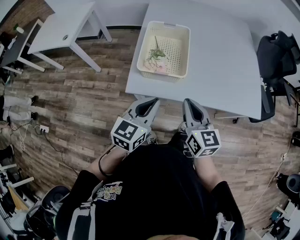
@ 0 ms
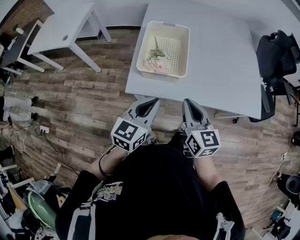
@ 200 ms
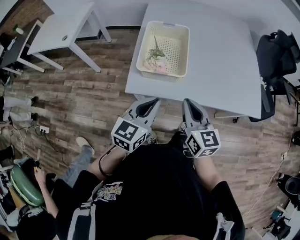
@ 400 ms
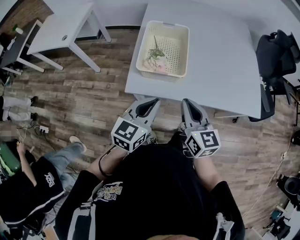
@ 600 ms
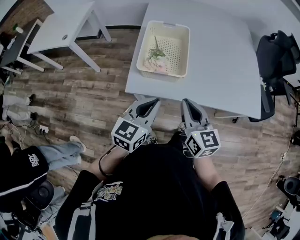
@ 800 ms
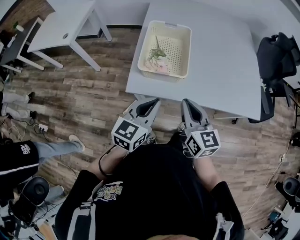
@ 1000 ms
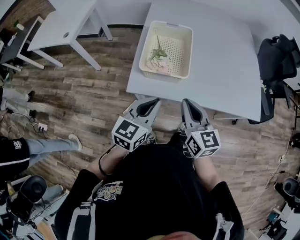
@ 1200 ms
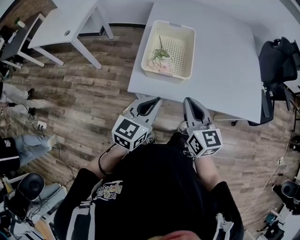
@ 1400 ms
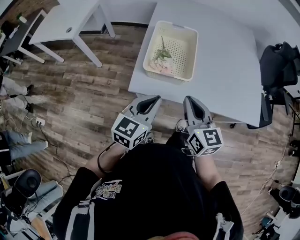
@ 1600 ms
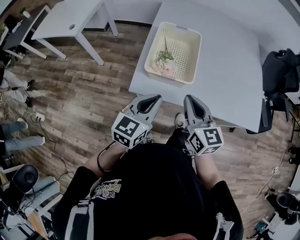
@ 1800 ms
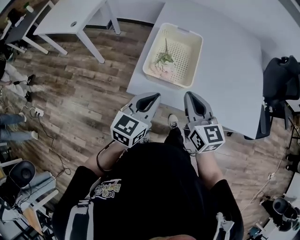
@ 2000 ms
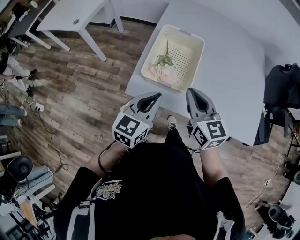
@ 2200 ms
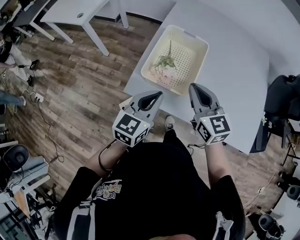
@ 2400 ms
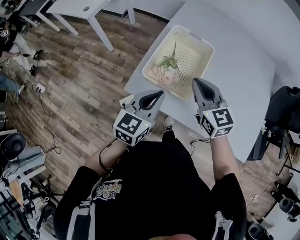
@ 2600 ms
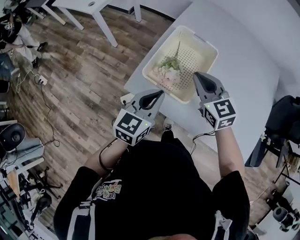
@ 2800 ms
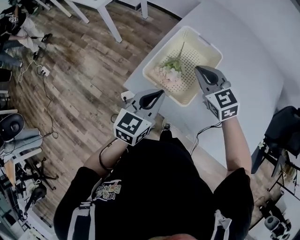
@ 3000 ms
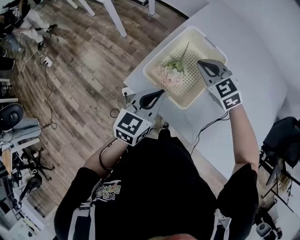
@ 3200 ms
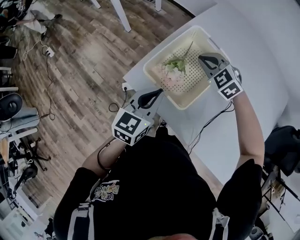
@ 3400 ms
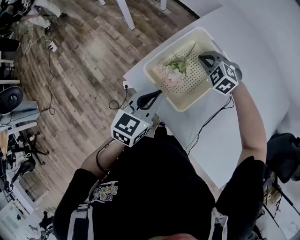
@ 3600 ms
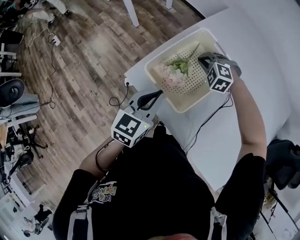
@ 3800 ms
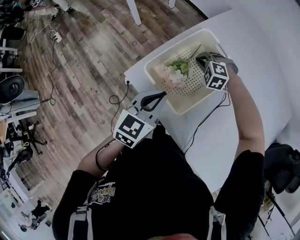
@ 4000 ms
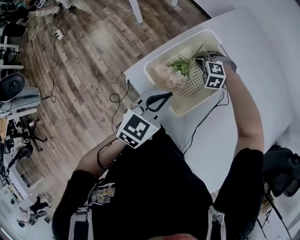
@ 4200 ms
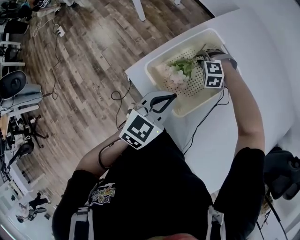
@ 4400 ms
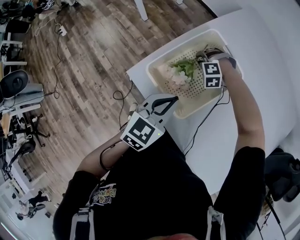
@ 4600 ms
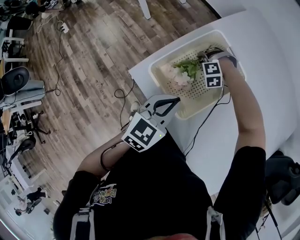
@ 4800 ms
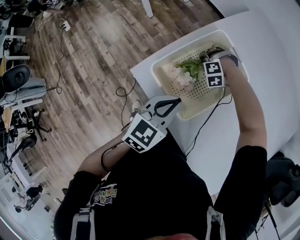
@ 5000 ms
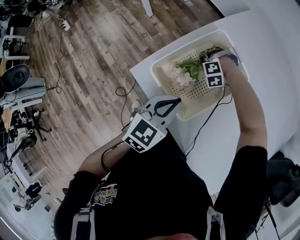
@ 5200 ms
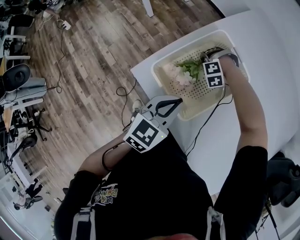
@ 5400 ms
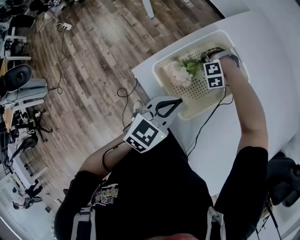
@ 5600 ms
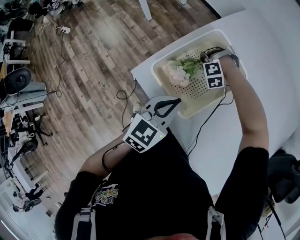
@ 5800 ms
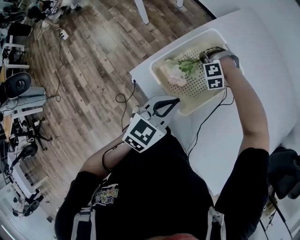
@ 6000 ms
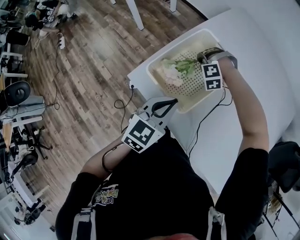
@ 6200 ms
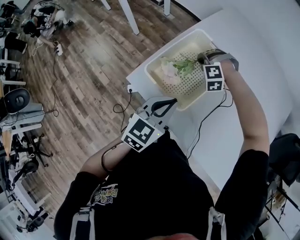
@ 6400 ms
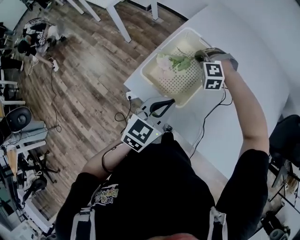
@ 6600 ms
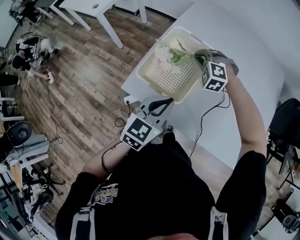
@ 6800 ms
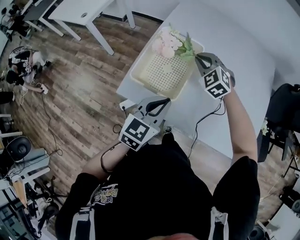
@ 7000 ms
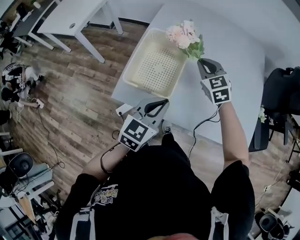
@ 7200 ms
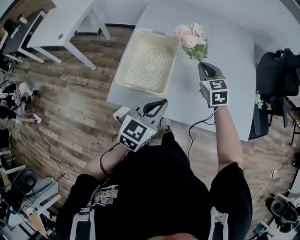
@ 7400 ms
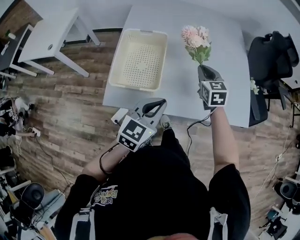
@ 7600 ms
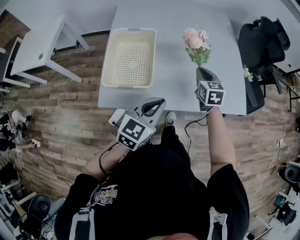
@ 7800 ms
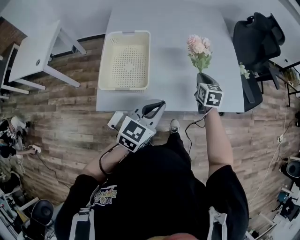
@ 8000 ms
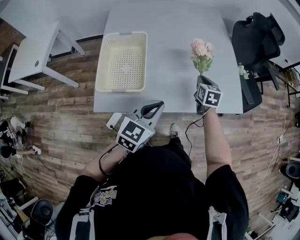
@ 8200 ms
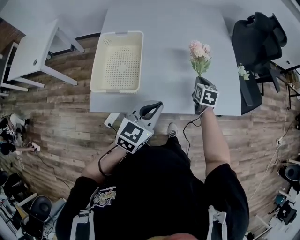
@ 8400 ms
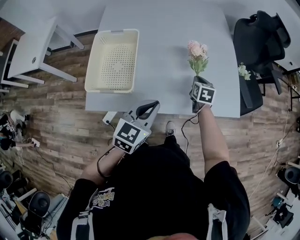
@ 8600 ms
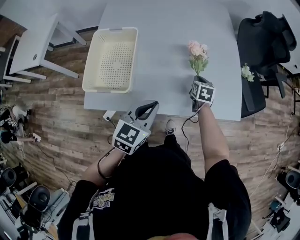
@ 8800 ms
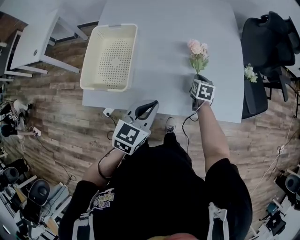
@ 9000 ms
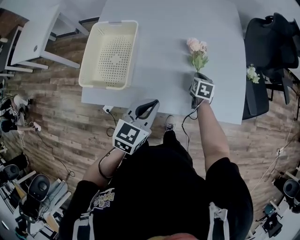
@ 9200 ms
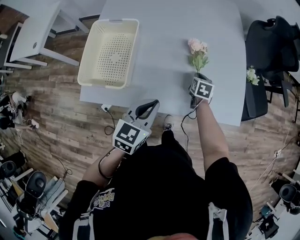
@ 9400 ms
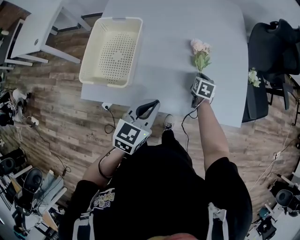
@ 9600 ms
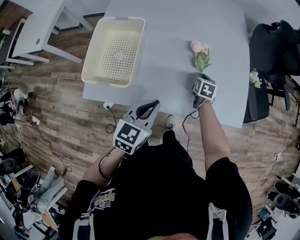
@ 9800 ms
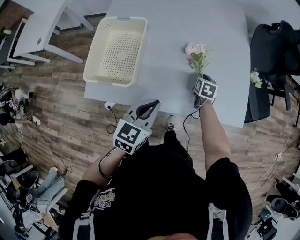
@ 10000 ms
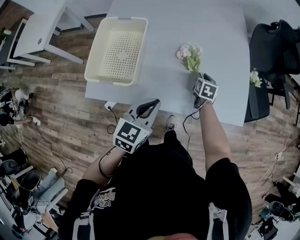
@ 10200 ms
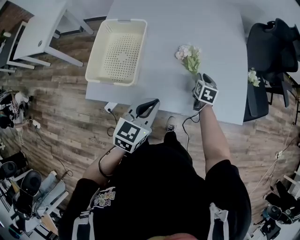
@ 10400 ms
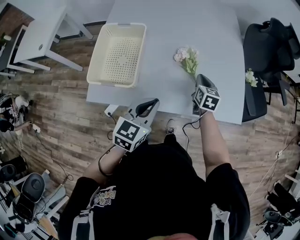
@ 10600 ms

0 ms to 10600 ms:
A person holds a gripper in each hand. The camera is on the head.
0 ms to 1600 ms: The grippers move only a little.
1600 ms to 3000 ms: The left gripper shifts by approximately 15 cm, and rotates approximately 20 degrees, while the right gripper shifts by about 25 cm, and swivels about 50 degrees.
3000 ms to 4600 ms: The left gripper heads to the right, covering roughly 5 cm. Meanwhile the right gripper is displaced downward and forward by about 30 cm, and twists roughly 80 degrees counterclockwise, seen from behind.
4600 ms to 6000 ms: There are only small adjustments of the grippers.
6000 ms to 7600 ms: The left gripper shifts by about 15 cm, and swivels about 40 degrees, while the right gripper moves approximately 40 cm, and rolls clockwise, seen from behind, by some 120 degrees.
7600 ms to 9000 ms: The right gripper heads downward and to the right, covering approximately 25 cm, and swivels about 30 degrees. The left gripper travels to the right and forward by approximately 10 cm.
9000 ms to 10600 ms: The right gripper travels upward by roughly 5 cm.

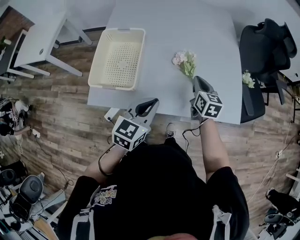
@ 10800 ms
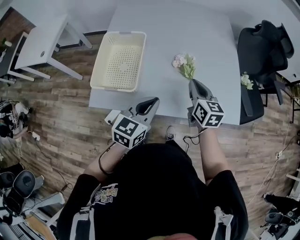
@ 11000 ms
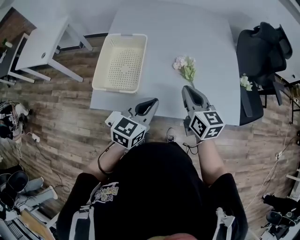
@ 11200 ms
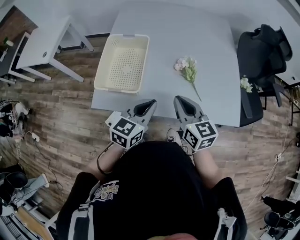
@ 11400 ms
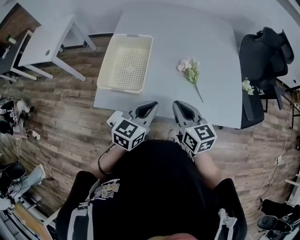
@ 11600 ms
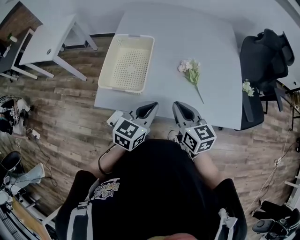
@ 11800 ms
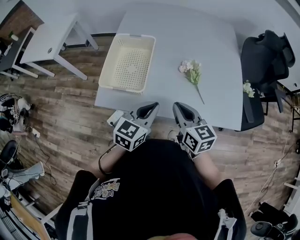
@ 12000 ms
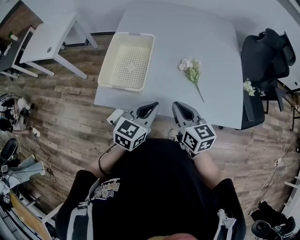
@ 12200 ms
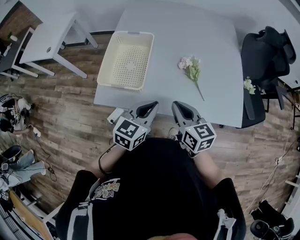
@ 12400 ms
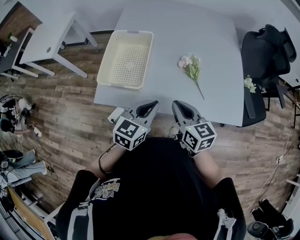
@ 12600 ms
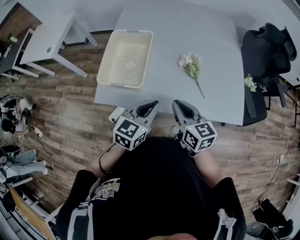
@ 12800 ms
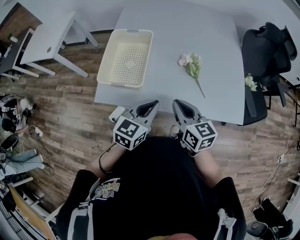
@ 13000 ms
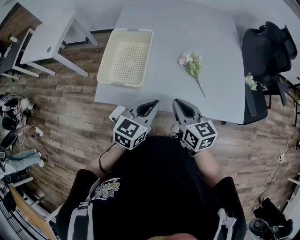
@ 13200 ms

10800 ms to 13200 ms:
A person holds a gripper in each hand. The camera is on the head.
10800 ms to 12000 ms: The right gripper is displaced backward, to the left and upward by approximately 20 cm, and swivels approximately 20 degrees.
12000 ms to 13200 ms: The grippers make only small movements.

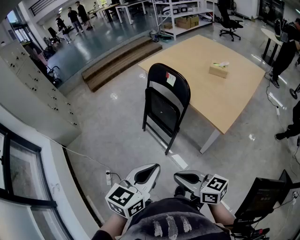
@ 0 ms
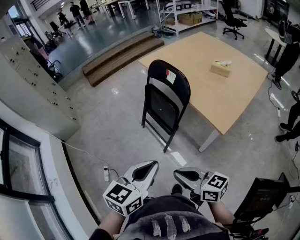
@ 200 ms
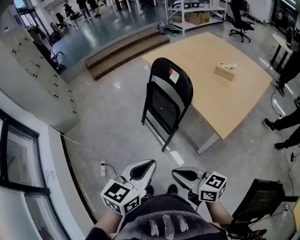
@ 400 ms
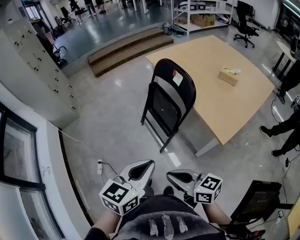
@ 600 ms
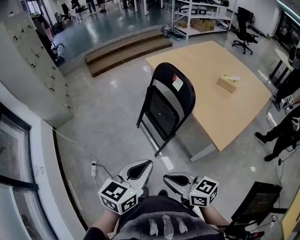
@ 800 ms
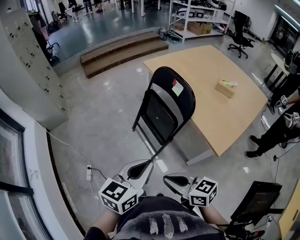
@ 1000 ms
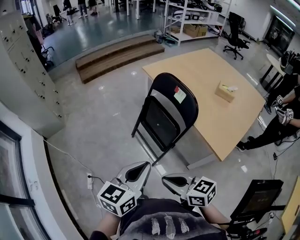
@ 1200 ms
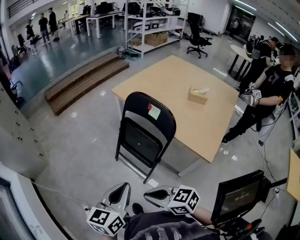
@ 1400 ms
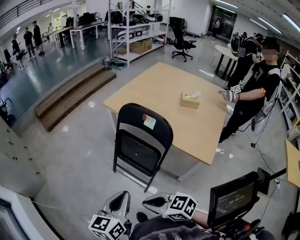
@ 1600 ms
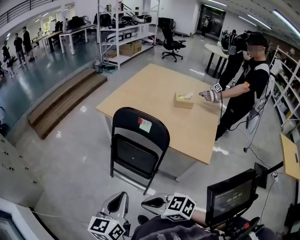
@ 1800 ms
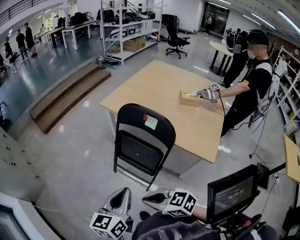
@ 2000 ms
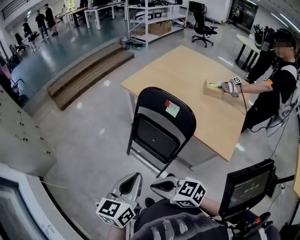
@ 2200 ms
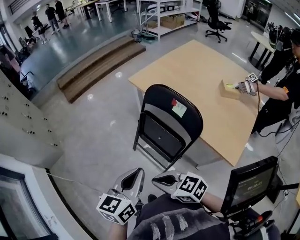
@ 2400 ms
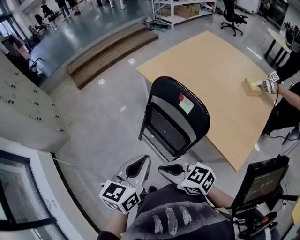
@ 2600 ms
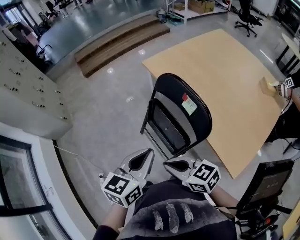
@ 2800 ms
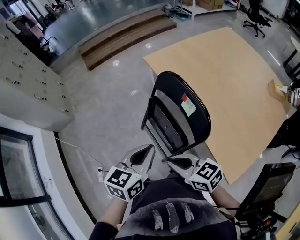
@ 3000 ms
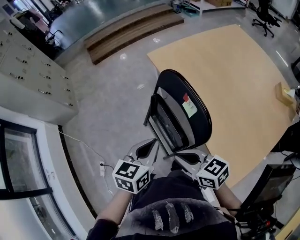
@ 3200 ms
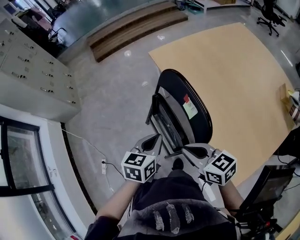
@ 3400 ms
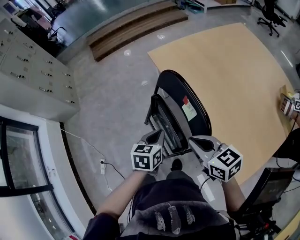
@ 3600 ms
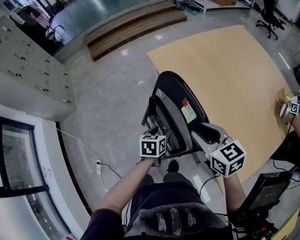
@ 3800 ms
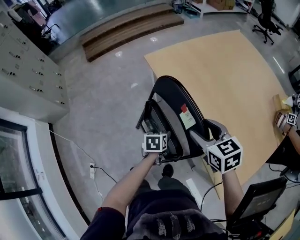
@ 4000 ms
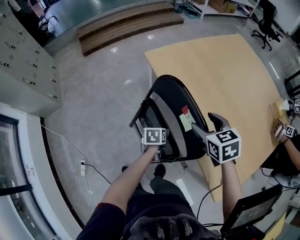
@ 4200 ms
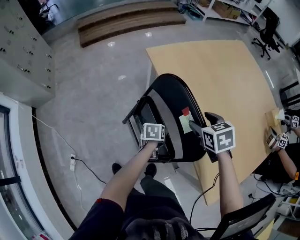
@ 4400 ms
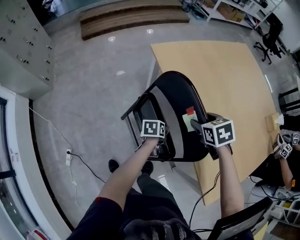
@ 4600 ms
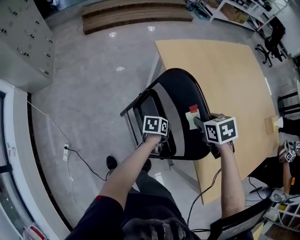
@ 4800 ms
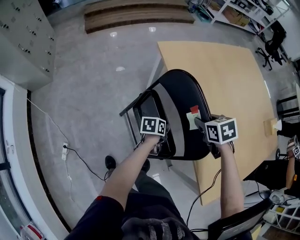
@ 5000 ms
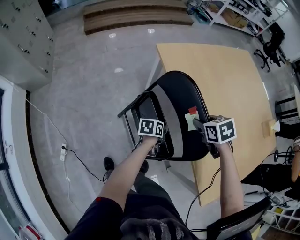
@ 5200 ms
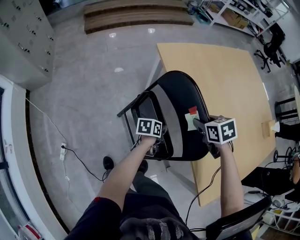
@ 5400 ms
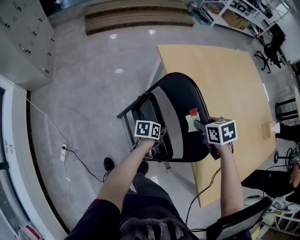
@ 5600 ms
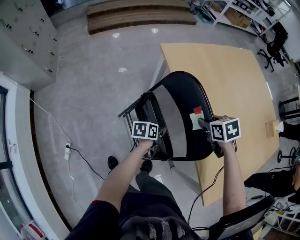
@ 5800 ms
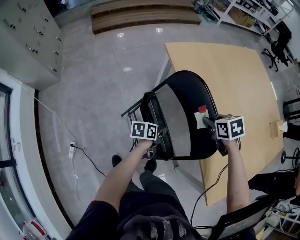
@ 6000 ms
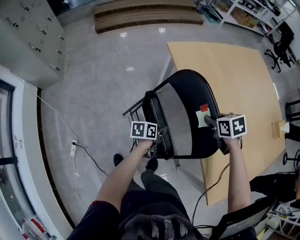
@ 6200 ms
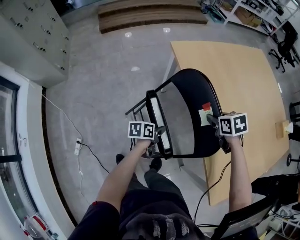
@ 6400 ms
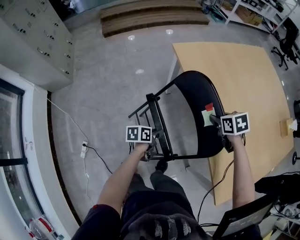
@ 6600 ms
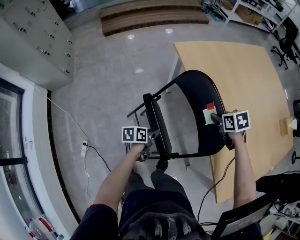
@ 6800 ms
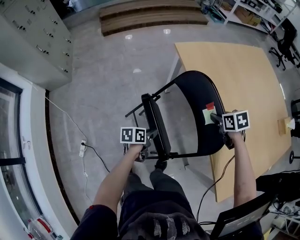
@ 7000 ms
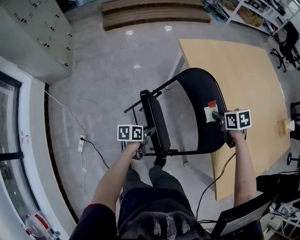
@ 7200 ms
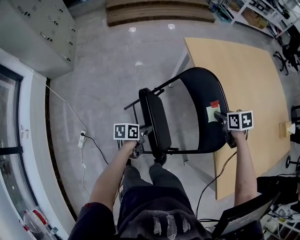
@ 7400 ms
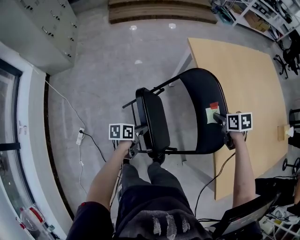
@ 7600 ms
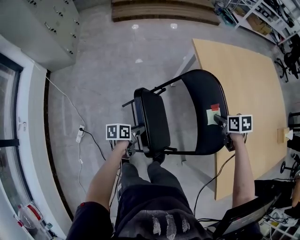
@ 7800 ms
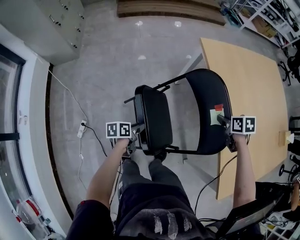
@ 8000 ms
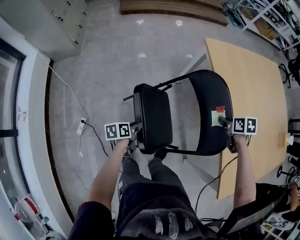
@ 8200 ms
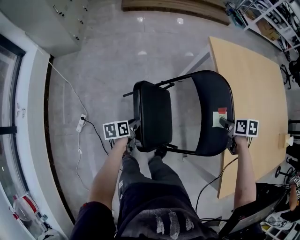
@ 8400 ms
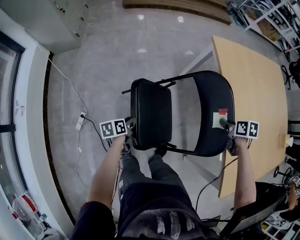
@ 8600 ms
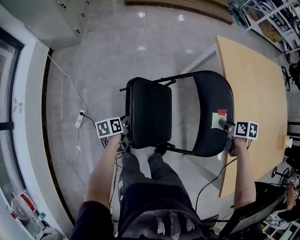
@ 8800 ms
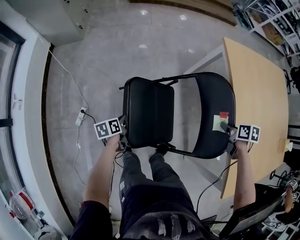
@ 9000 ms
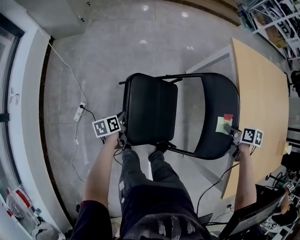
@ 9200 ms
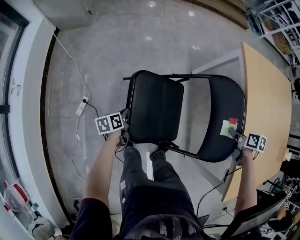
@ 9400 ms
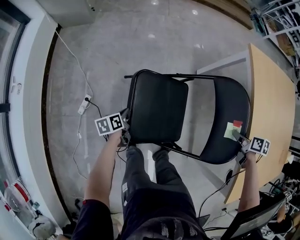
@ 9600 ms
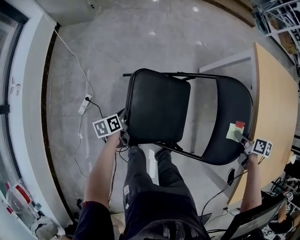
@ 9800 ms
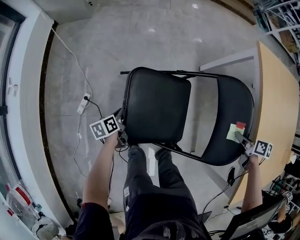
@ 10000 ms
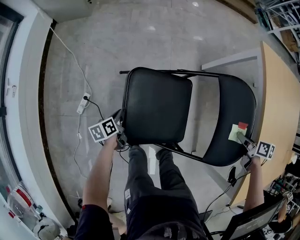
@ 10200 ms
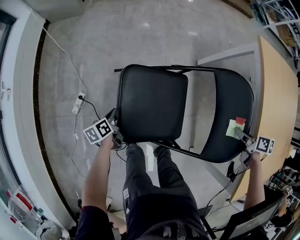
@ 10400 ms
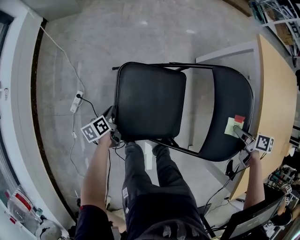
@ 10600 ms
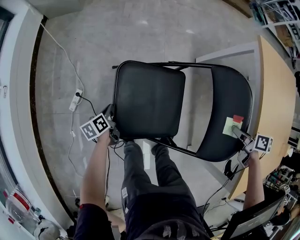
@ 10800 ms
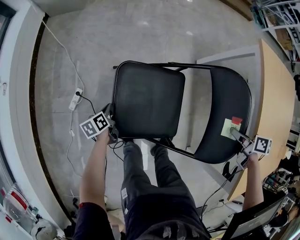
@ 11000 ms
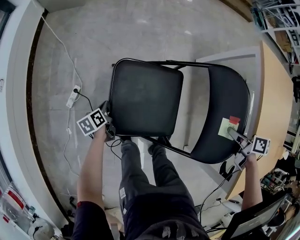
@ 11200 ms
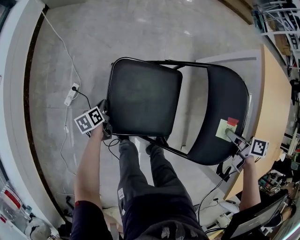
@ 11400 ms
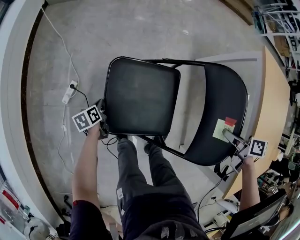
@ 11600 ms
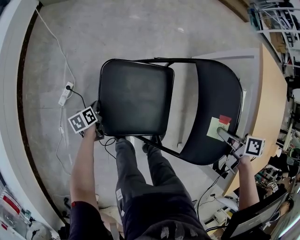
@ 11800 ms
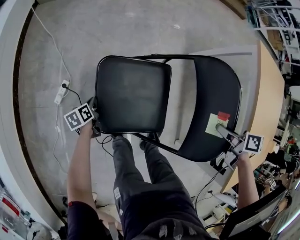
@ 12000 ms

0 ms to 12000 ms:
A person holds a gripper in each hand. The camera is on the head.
0 ms to 1600 ms: The right gripper shifts roughly 25 cm forward and to the left, and swivels approximately 20 degrees. The left gripper heads forward, covering some 25 cm.
1600 ms to 3000 ms: The left gripper moves forward and to the right, some 20 cm; the right gripper heads to the right and forward, covering some 20 cm.
3000 ms to 4400 ms: The right gripper moves forward and to the right, approximately 30 cm, angles its fingers downward, by roughly 30 degrees, and opens up. The left gripper is displaced downward and forward by approximately 35 cm, tilts its fingers some 30 degrees downward, and opens up.
4400 ms to 6000 ms: The right gripper closes its fingers; the left gripper rotates roughly 30 degrees, and closes up.
6000 ms to 7600 ms: The right gripper moves roughly 5 cm; the left gripper moves to the left and backward, approximately 20 cm.
7600 ms to 9000 ms: The right gripper travels to the left by roughly 5 cm. Meanwhile the left gripper goes some 20 cm to the left, and turns by some 30 degrees.
9000 ms to 10400 ms: The left gripper shifts roughly 15 cm to the left and downward, while the right gripper goes approximately 5 cm downward.
10400 ms to 12000 ms: The right gripper is displaced to the left by about 20 cm. Meanwhile the left gripper heads downward and to the left, covering some 10 cm.
